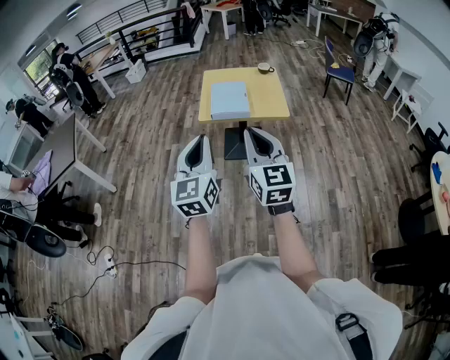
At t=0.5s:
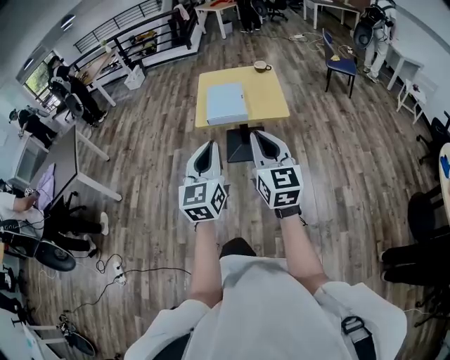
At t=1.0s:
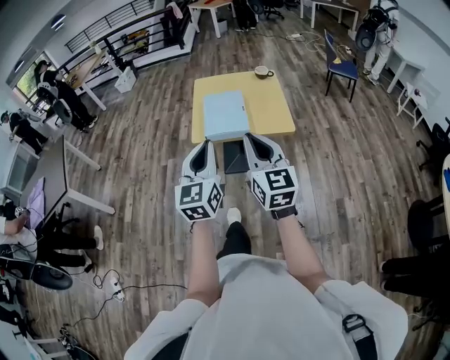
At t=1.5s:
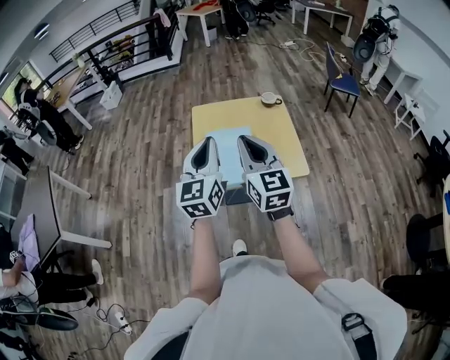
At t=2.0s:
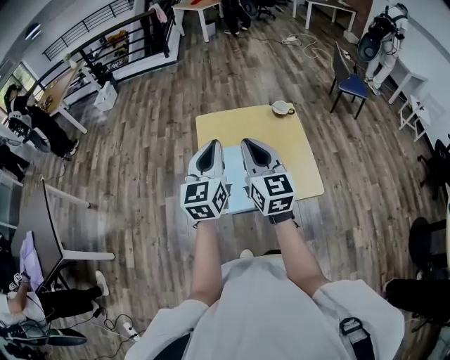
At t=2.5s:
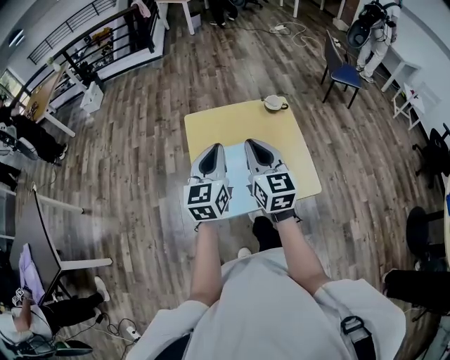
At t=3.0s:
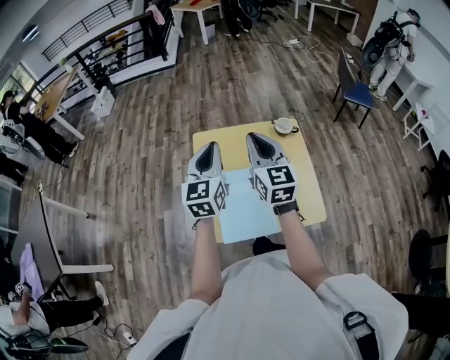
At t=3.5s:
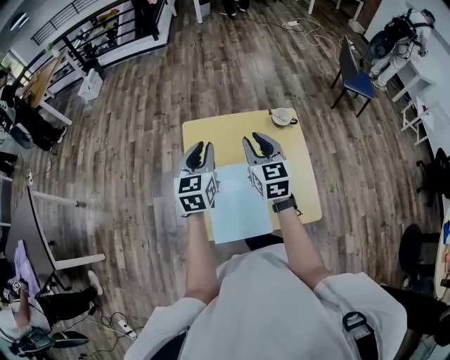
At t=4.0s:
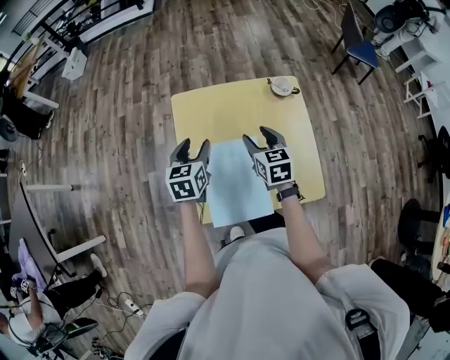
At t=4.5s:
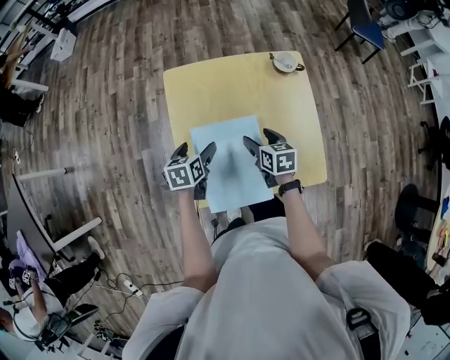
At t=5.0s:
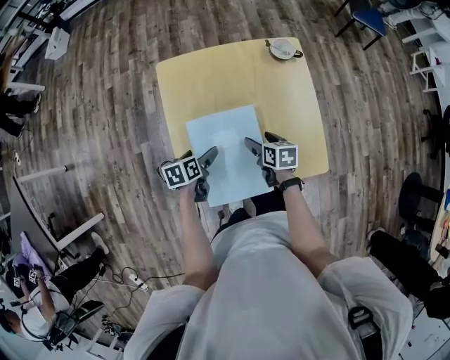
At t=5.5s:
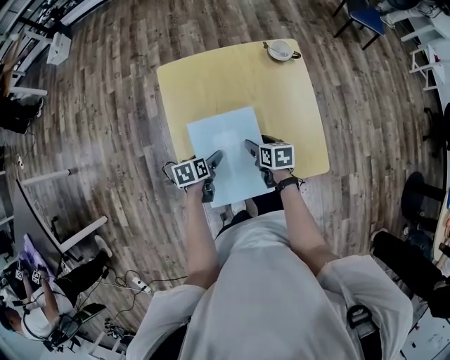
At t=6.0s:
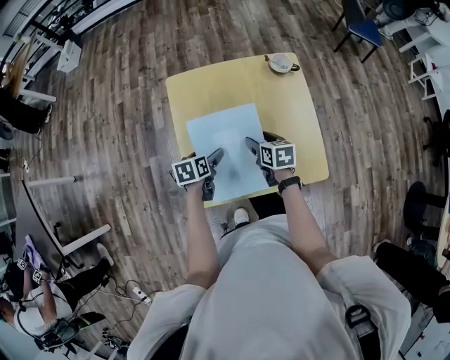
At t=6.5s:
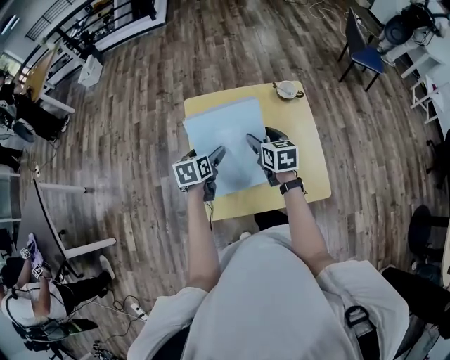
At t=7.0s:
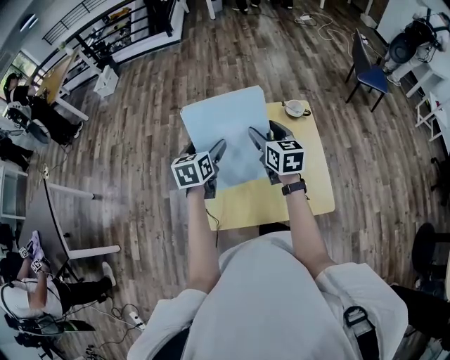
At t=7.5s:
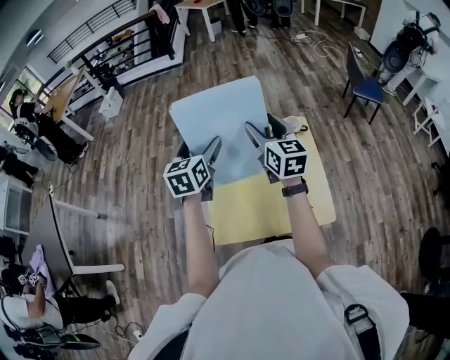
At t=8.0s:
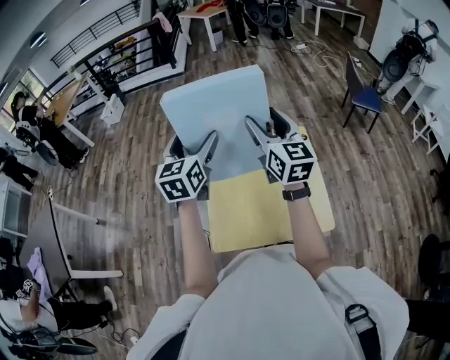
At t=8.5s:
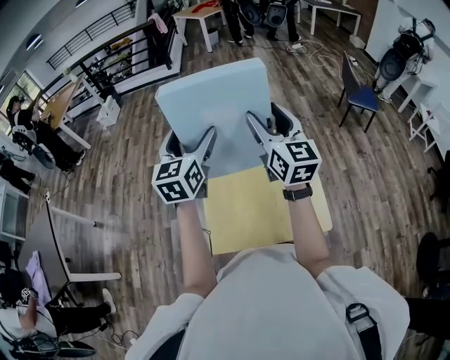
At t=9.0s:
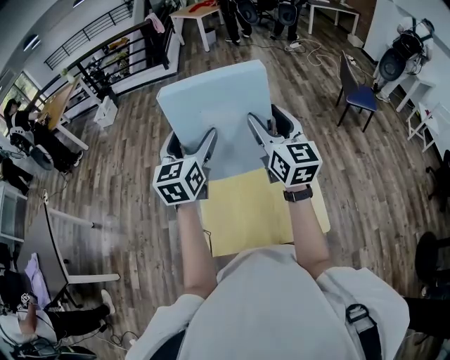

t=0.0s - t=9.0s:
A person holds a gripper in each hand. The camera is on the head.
t=0.0s - t=2.0s: Both grippers are carried forward, some 60 cm.
t=2.0s - t=4.5s: The two grippers go some 40 cm downward and forward. The right gripper tips its fingers downward by some 40 degrees, and opens its fingers. The left gripper points its fingers approximately 50 degrees further downward, and opens its fingers.
t=4.5s - t=7.0s: Both grippers travel together upward, approximately 20 cm. The right gripper turns by about 30 degrees. Meanwhile the left gripper swivels about 20 degrees.
t=7.0s - t=9.0s: The two grippers go roughly 20 cm upward. The right gripper changes its angle by roughly 30 degrees; the left gripper swivels some 30 degrees.

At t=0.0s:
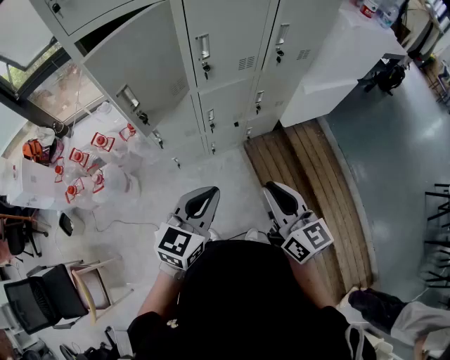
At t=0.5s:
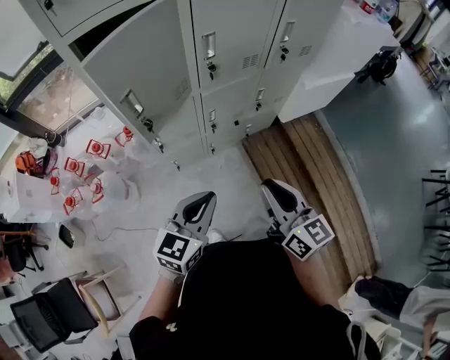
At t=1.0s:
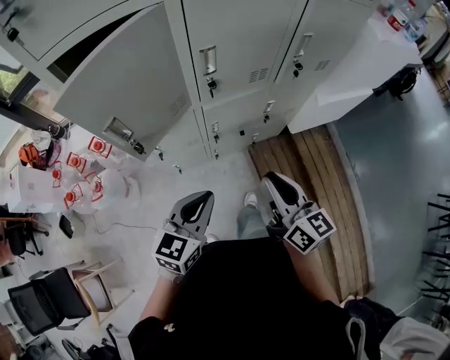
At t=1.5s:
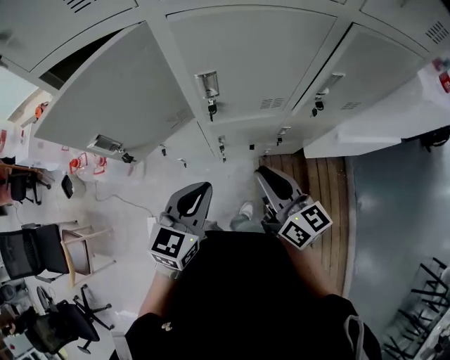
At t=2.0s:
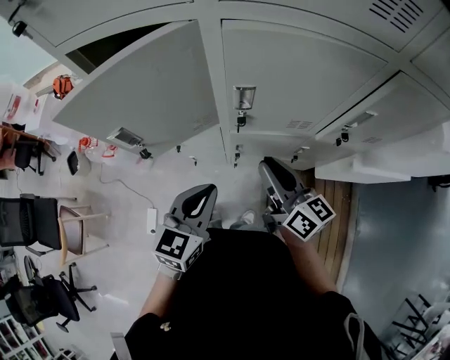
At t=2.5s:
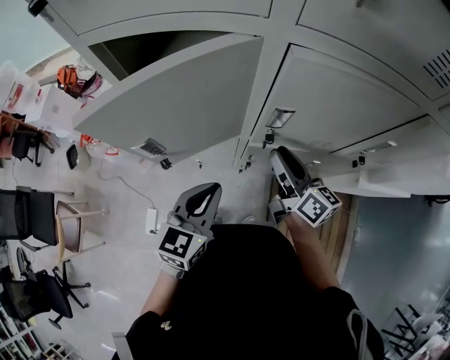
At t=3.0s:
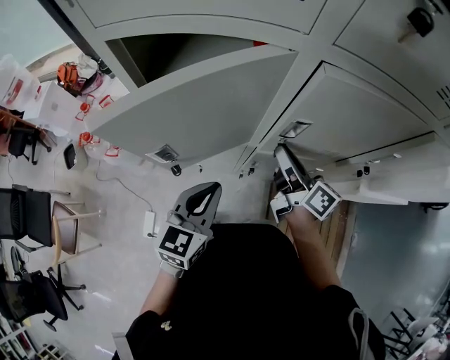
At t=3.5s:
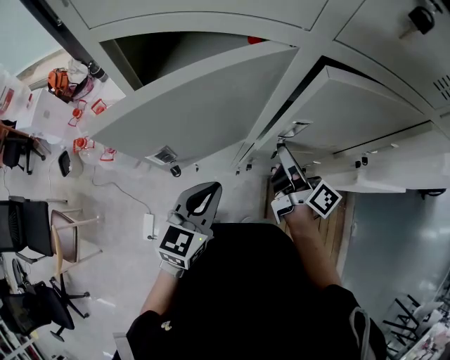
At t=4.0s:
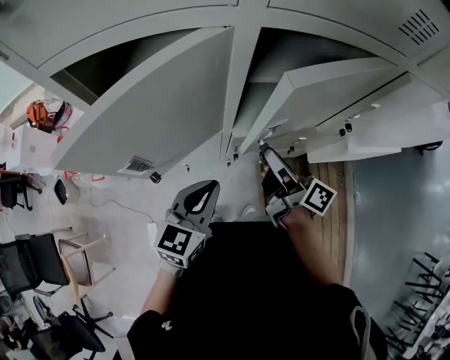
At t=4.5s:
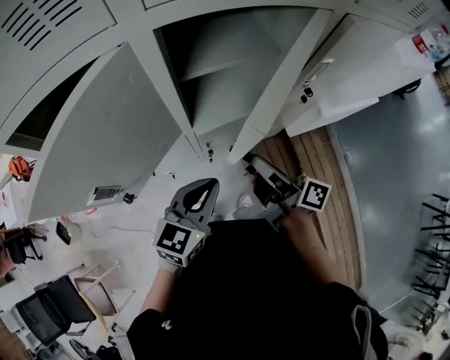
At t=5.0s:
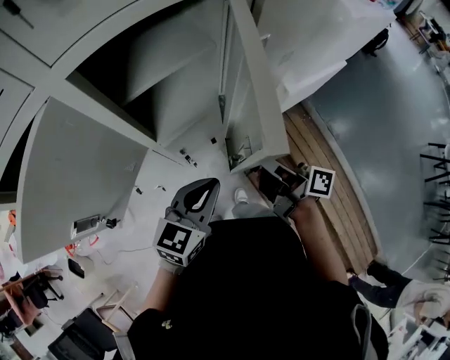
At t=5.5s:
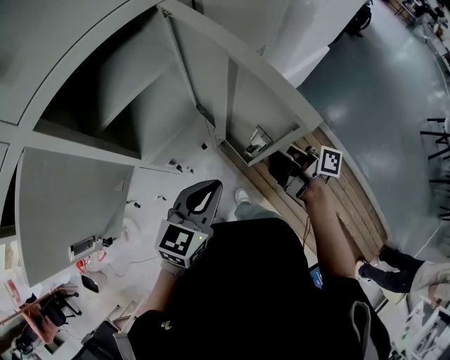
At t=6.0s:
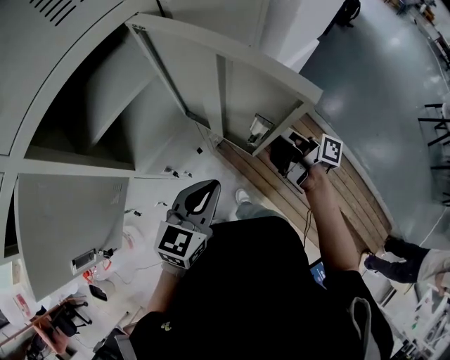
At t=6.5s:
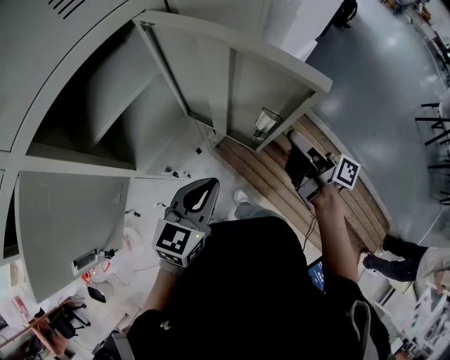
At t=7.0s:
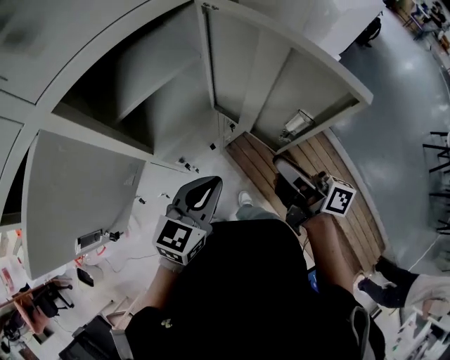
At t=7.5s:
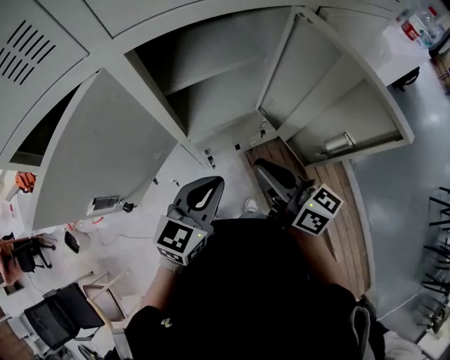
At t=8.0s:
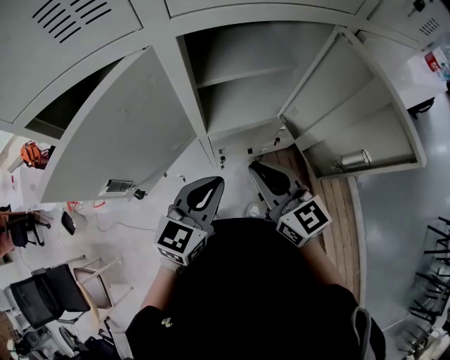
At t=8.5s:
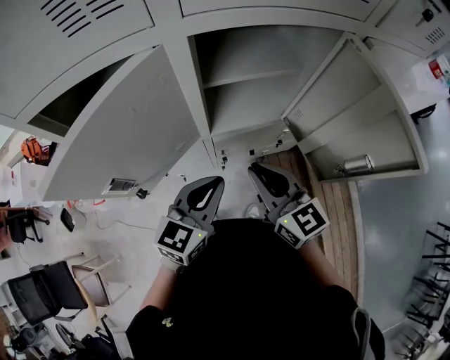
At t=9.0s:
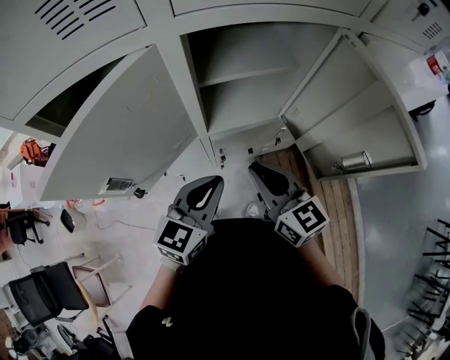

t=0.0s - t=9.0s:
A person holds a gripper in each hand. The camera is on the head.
t=0.0s - t=2.0s: The left gripper changes place by roughly 25 cm, and changes its angle by about 30 degrees, while the right gripper moves some 35 cm, and swivels roughly 30 degrees.
t=2.0s - t=4.5s: The left gripper travels to the left and back again, about 10 cm each way, and turns by about 30 degrees; the right gripper reaches about 10 cm forward, then returns, and changes its angle by roughly 40 degrees.
t=4.5s - t=7.0s: The left gripper shifts by approximately 10 cm.
t=7.0s - t=9.0s: The left gripper heads to the left, covering roughly 10 cm, and rotates about 20 degrees. Meanwhile the right gripper shifts some 20 cm to the left, and rotates around the line of its fingers by some 50 degrees, counterclockwise from behind.

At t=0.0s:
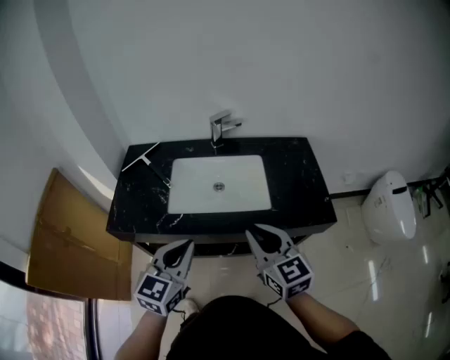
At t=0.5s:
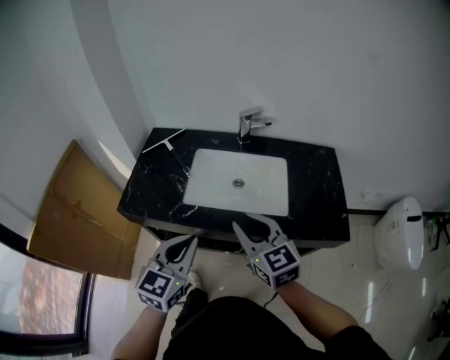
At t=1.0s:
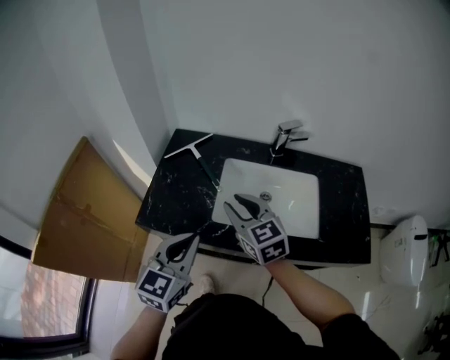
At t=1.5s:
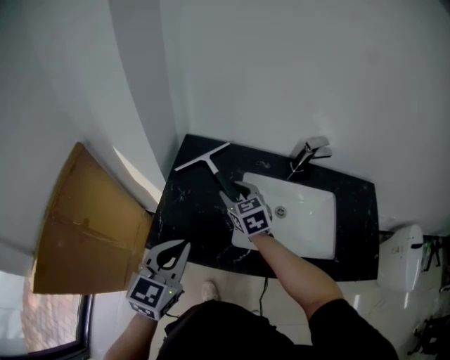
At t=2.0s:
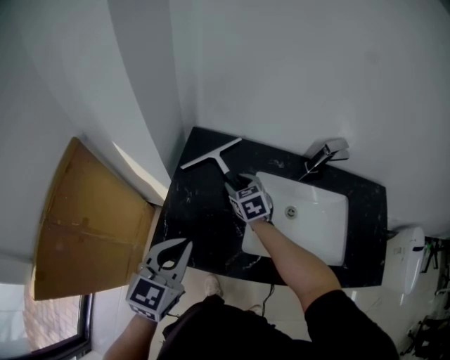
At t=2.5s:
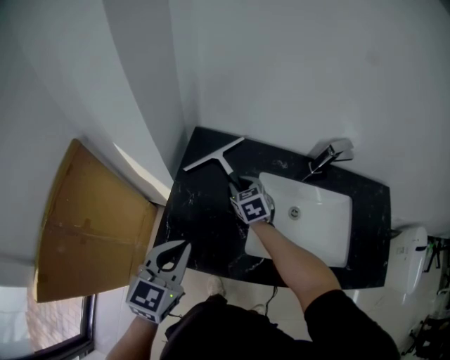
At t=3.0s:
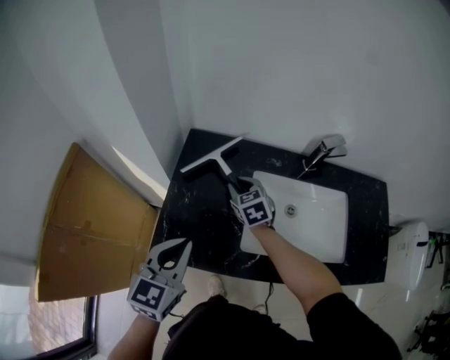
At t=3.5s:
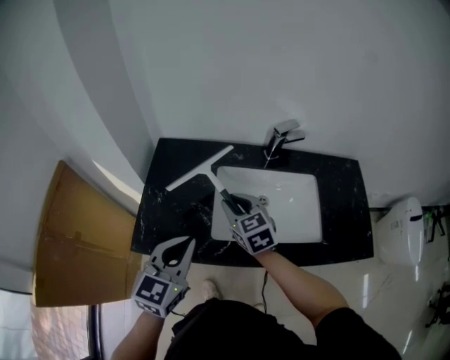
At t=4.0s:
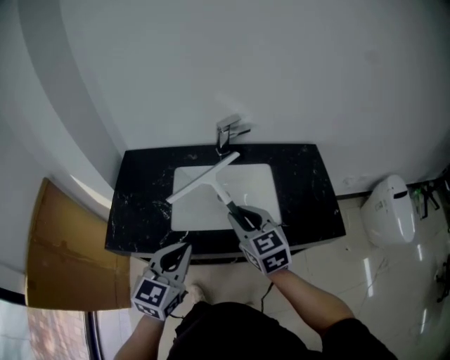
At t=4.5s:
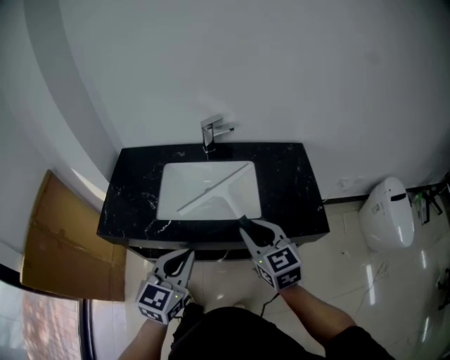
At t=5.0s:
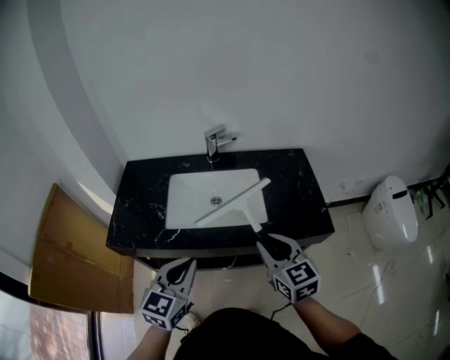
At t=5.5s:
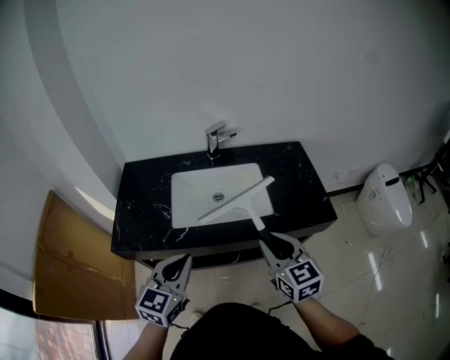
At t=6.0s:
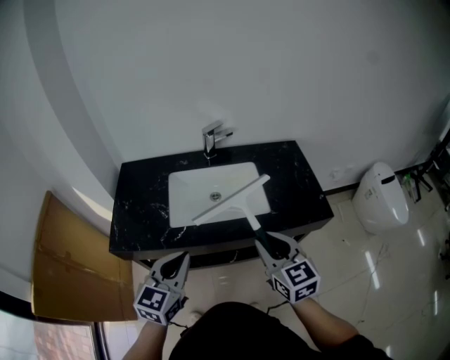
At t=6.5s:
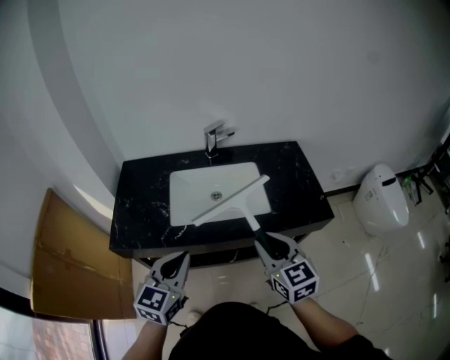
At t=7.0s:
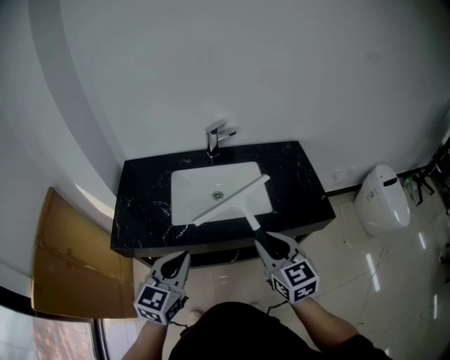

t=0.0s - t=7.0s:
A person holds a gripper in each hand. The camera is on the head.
t=0.0s - t=2.0s: The right gripper travels forward, to the left and downward by roughly 60 cm, swivels about 30 degrees, and opens up, while the left gripper travels to the left and forward by some 30 cm.
t=2.0s - t=3.5s: The right gripper moves backward, upward and to the right, about 20 cm. The left gripper moves to the right, roughly 10 cm.
t=3.5s - t=5.0s: The left gripper travels to the right and backward by roughly 25 cm, while the right gripper moves to the right and backward, some 40 cm.
t=5.0s - t=7.0s: Both grippers move to the left, about 5 cm.

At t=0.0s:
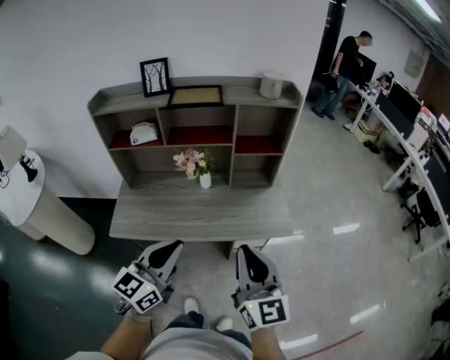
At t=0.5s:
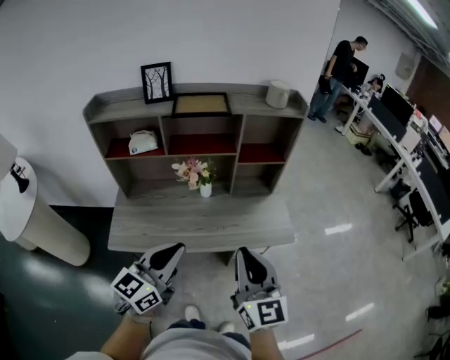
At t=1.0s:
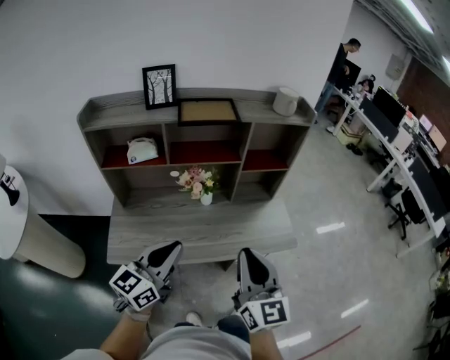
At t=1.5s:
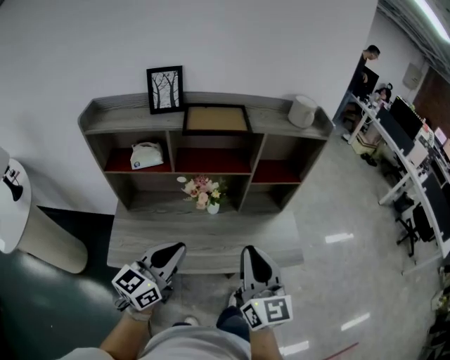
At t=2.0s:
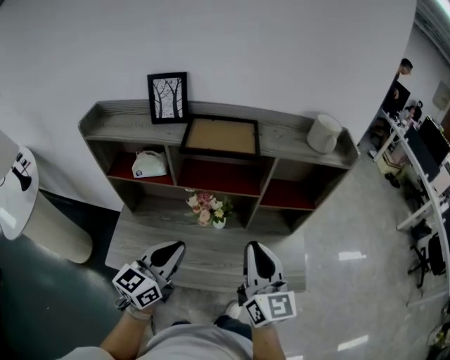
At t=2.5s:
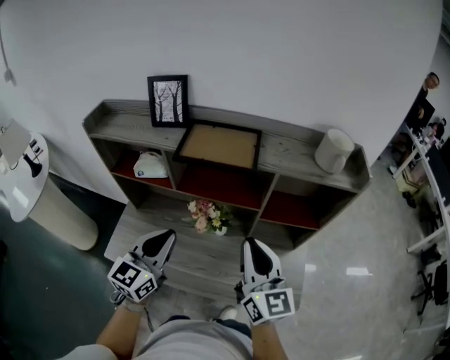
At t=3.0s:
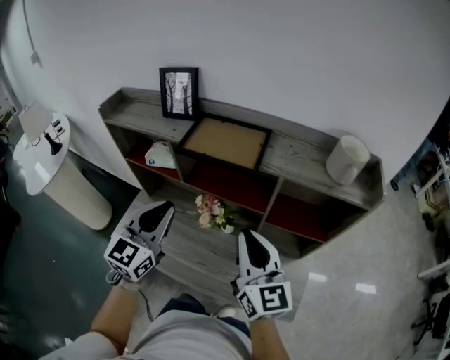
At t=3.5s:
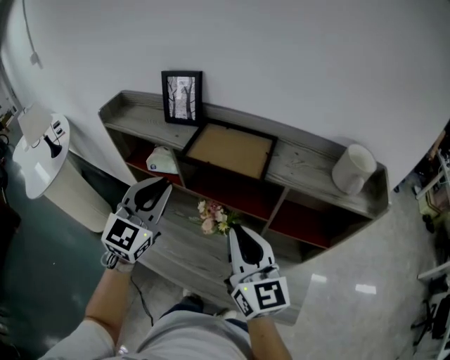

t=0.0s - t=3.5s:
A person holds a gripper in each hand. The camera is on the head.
t=0.0s - t=2.0s: The right gripper heads forward, covering about 25 cm, while the left gripper goes about 25 cm forward and to the left.
t=2.0s - t=3.5s: The right gripper heads forward, covering some 10 cm, and turns by roughly 20 degrees, while the left gripper goes roughly 15 cm forward and upward, and rotates roughly 40 degrees.
